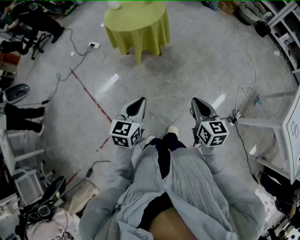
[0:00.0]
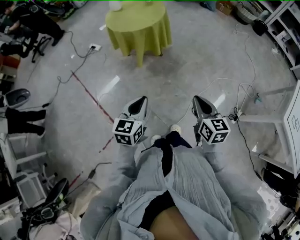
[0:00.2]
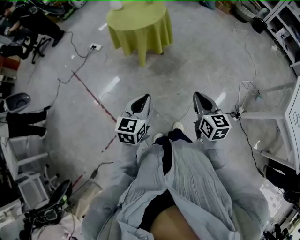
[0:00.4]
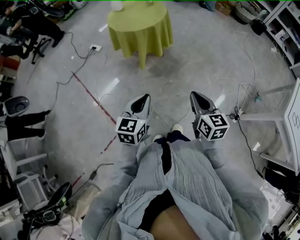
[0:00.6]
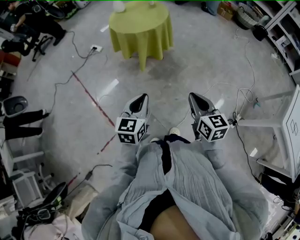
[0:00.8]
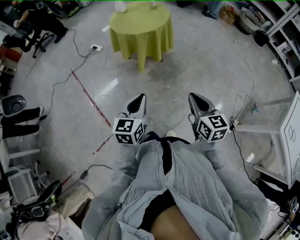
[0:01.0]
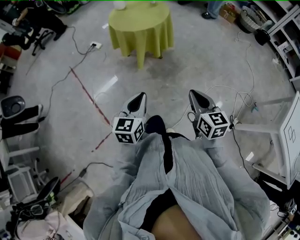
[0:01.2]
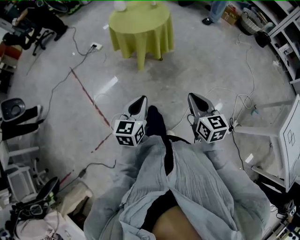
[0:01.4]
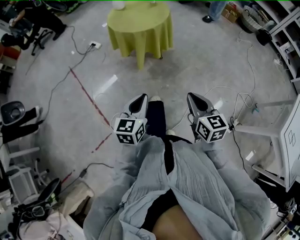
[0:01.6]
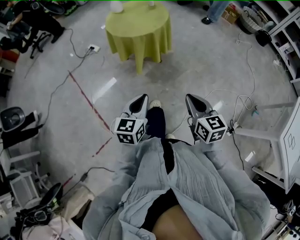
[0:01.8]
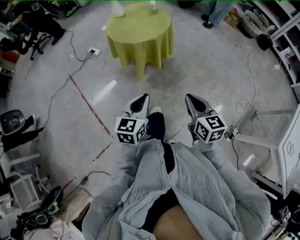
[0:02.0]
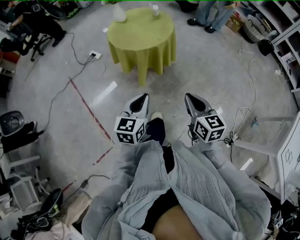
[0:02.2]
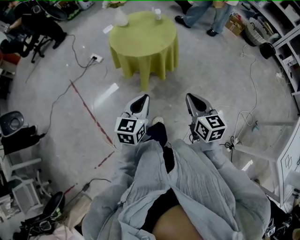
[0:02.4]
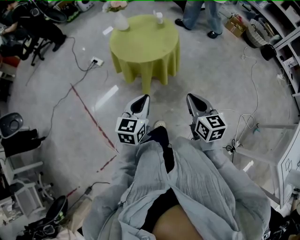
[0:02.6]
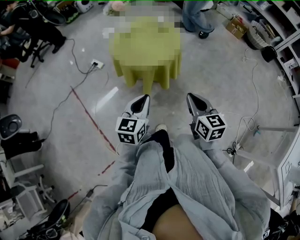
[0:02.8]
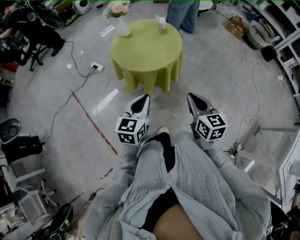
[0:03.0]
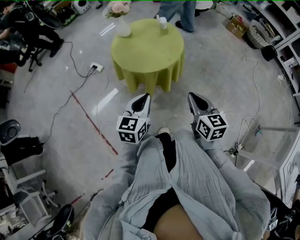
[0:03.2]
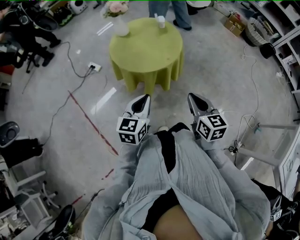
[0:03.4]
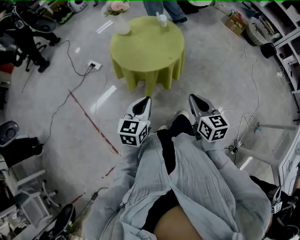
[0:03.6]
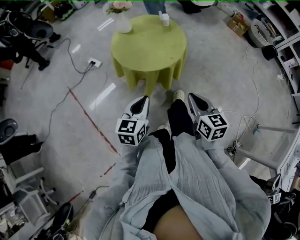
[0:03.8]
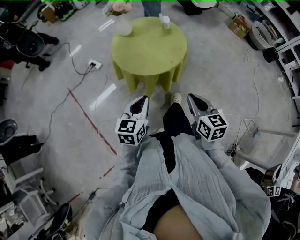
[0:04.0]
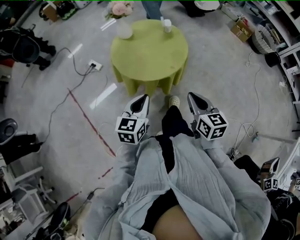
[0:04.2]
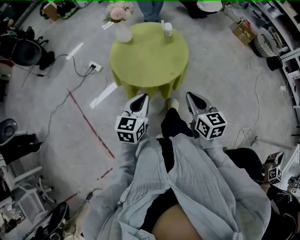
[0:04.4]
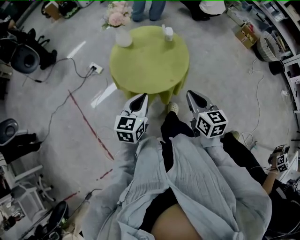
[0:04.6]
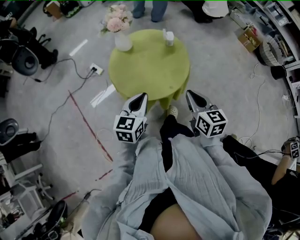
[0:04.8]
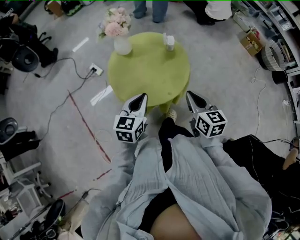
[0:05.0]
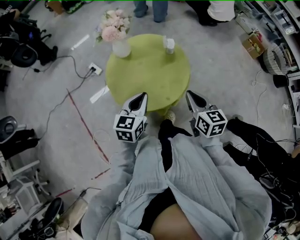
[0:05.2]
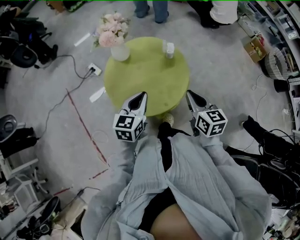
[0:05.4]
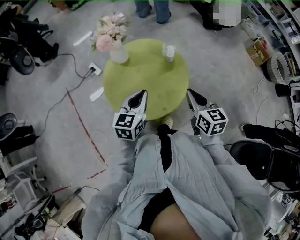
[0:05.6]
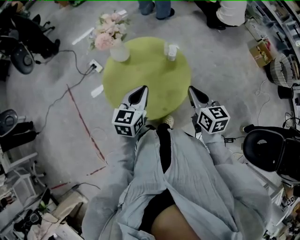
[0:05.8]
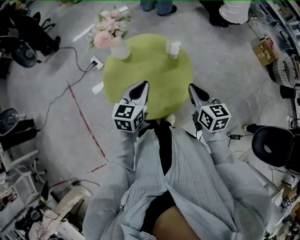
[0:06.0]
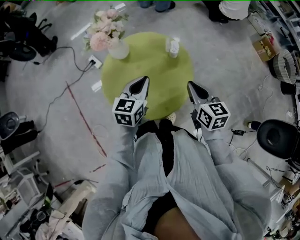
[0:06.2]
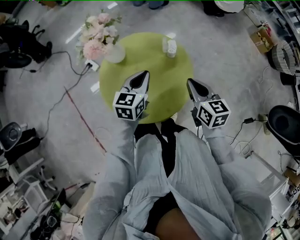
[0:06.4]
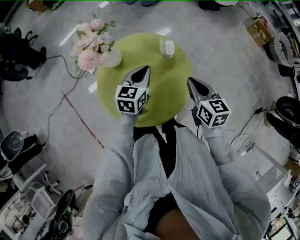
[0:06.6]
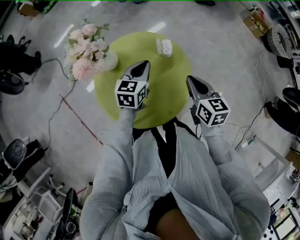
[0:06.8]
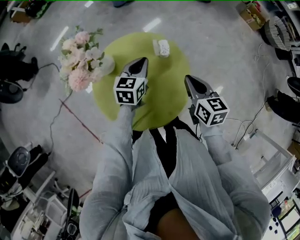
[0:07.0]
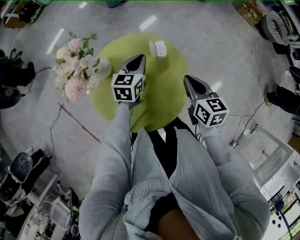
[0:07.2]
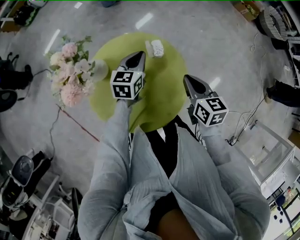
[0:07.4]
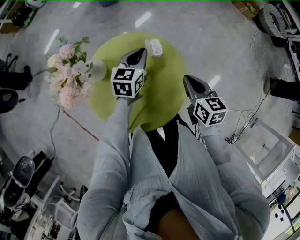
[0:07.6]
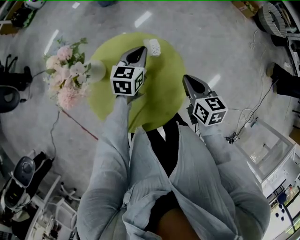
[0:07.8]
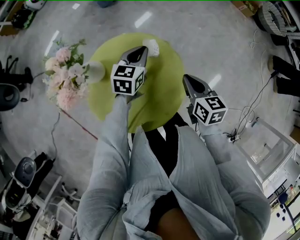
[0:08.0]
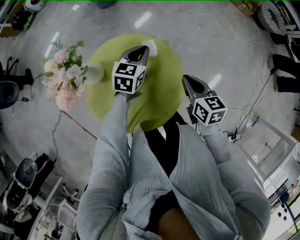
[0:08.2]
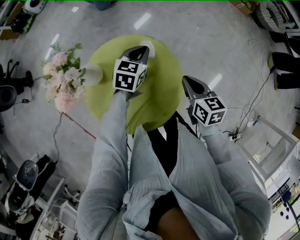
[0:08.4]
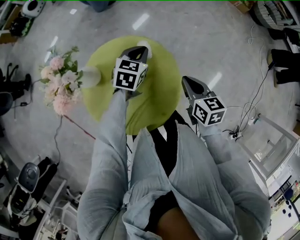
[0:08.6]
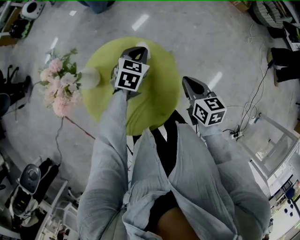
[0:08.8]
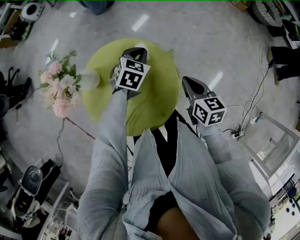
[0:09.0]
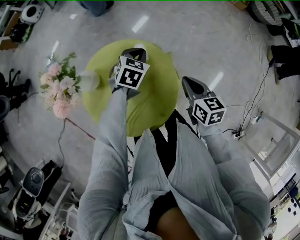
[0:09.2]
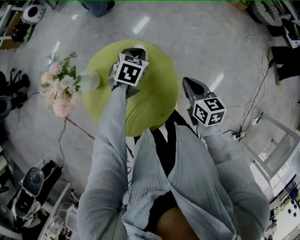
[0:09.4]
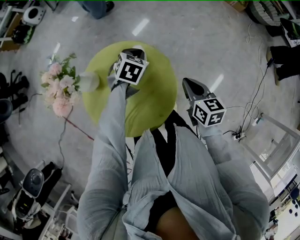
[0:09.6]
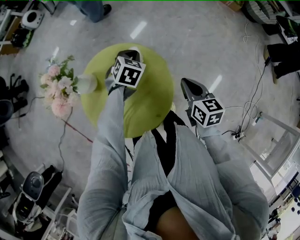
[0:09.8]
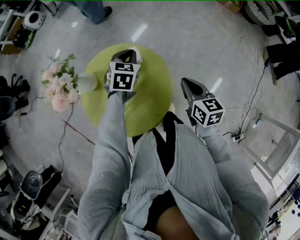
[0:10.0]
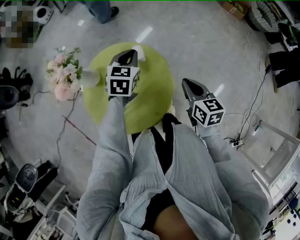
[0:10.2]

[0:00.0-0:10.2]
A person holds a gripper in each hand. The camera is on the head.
0:00.0 to 0:01.4: The grippers move only a little.
0:01.4 to 0:03.0: The grippers both shift forward by about 30 cm.
0:03.0 to 0:04.4: Both grippers move forward, some 10 cm.
0:04.4 to 0:05.8: The grippers both shift forward by about 20 cm.
0:05.8 to 0:07.2: The right gripper goes about 5 cm forward. Meanwhile the left gripper heads forward, covering some 20 cm.
0:07.2 to 0:08.8: The left gripper is displaced to the right by approximately 10 cm, and changes its angle by roughly 30 degrees. The right gripper is displaced to the right by approximately 5 cm.
0:08.8 to 0:10.2: The left gripper travels upward by roughly 5 cm, while the right gripper ends up about 5 cm from where it was.

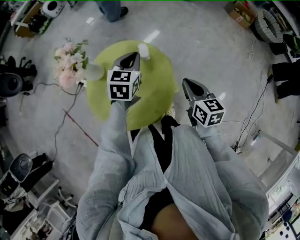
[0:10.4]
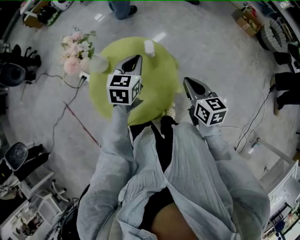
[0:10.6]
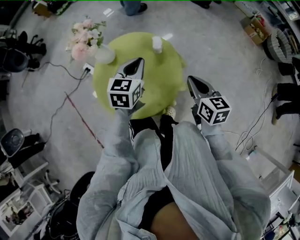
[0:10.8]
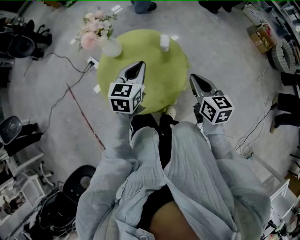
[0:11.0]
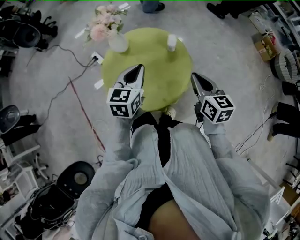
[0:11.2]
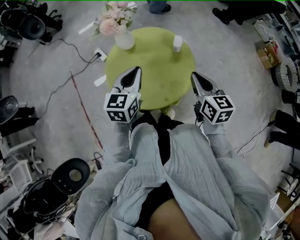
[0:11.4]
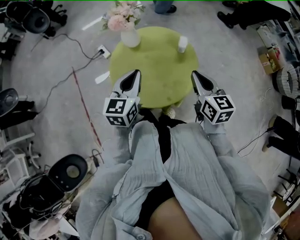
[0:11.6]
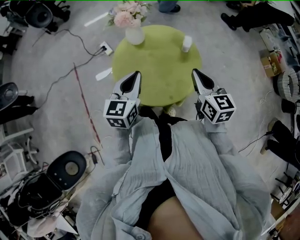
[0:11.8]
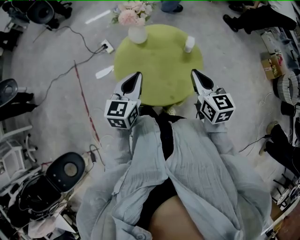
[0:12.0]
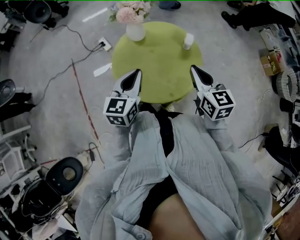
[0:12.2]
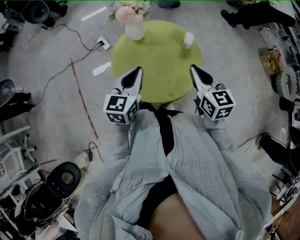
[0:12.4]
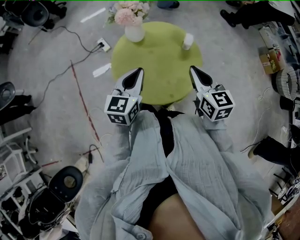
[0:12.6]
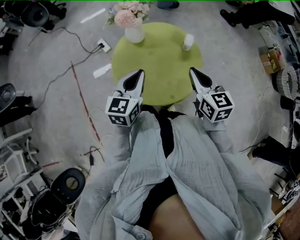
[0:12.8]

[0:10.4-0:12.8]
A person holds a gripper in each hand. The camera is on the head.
0:10.4 to 0:11.6: The left gripper moves backward and to the left, some 25 cm, and turns by some 30 degrees; the right gripper travels to the left and upward by about 10 cm, and rotates roughly 20 degrees.
0:11.6 to 0:12.8: The right gripper changes place by some 5 cm.

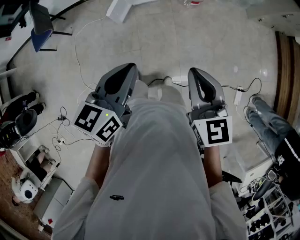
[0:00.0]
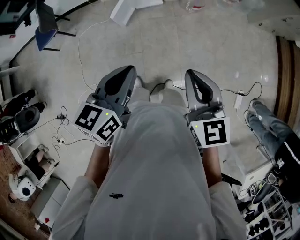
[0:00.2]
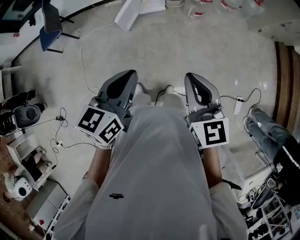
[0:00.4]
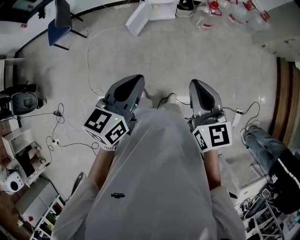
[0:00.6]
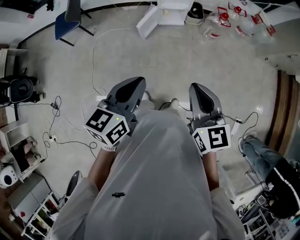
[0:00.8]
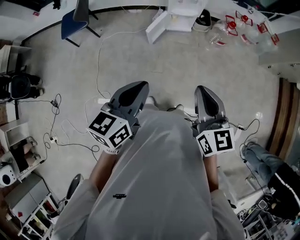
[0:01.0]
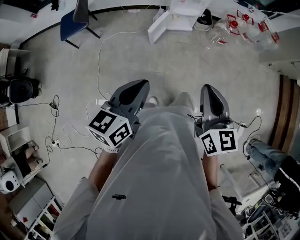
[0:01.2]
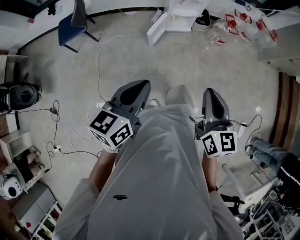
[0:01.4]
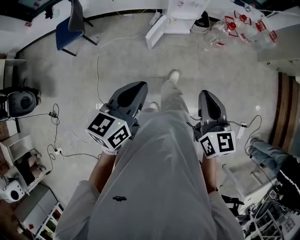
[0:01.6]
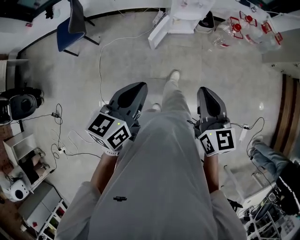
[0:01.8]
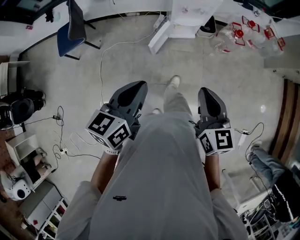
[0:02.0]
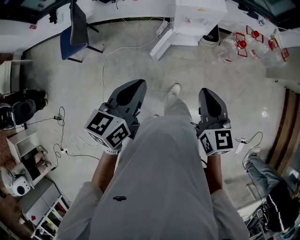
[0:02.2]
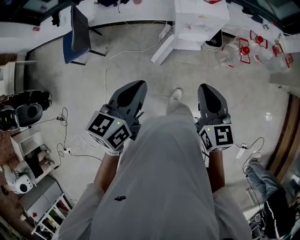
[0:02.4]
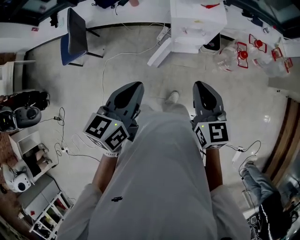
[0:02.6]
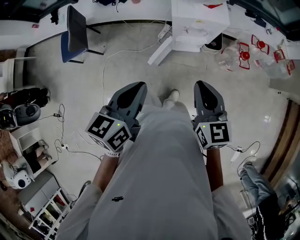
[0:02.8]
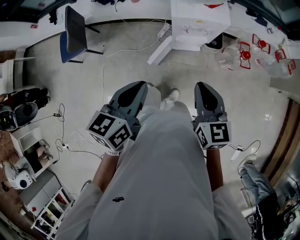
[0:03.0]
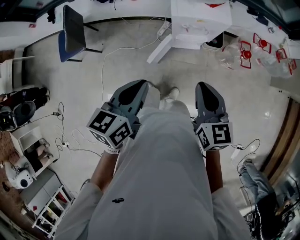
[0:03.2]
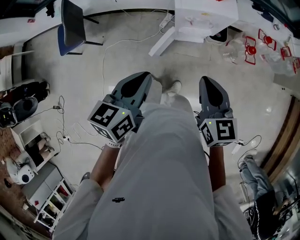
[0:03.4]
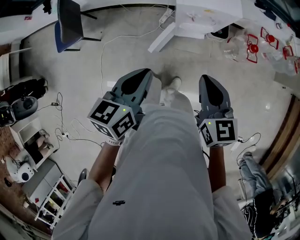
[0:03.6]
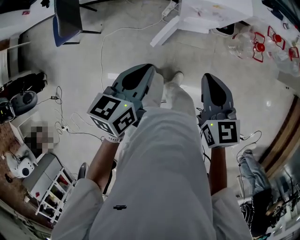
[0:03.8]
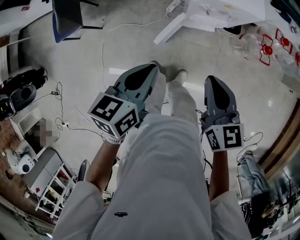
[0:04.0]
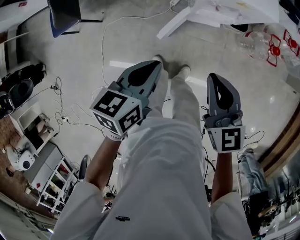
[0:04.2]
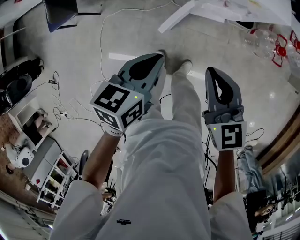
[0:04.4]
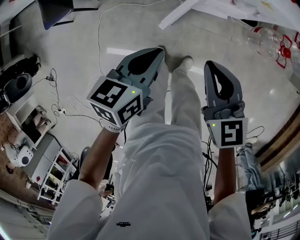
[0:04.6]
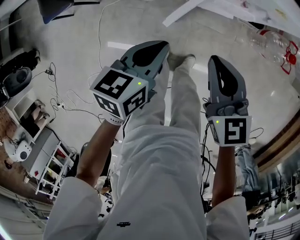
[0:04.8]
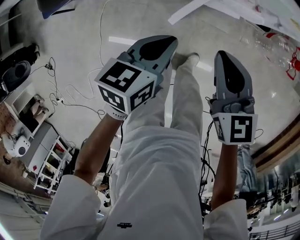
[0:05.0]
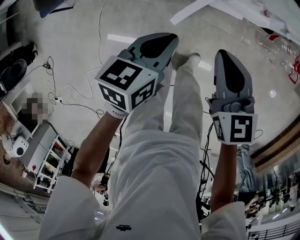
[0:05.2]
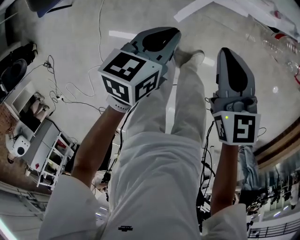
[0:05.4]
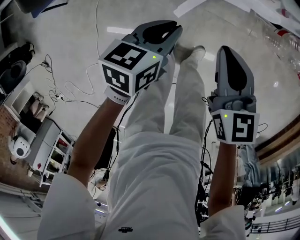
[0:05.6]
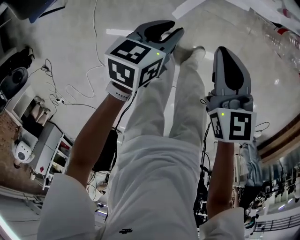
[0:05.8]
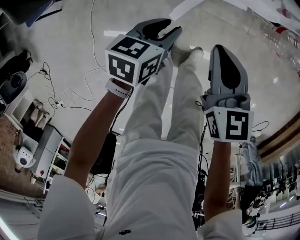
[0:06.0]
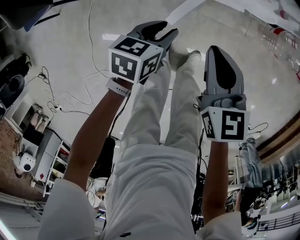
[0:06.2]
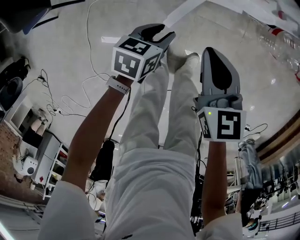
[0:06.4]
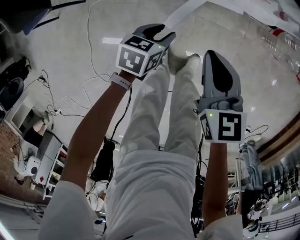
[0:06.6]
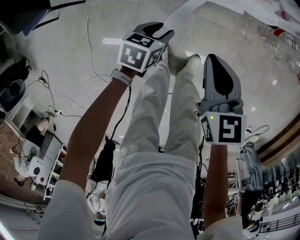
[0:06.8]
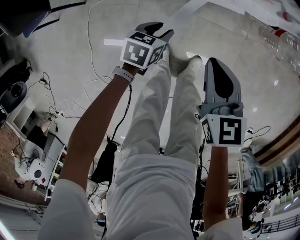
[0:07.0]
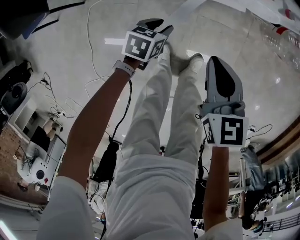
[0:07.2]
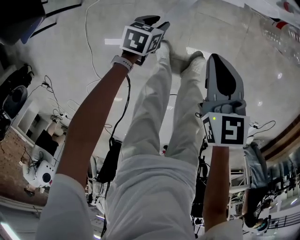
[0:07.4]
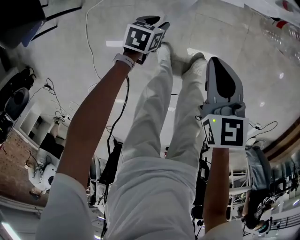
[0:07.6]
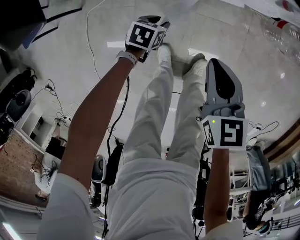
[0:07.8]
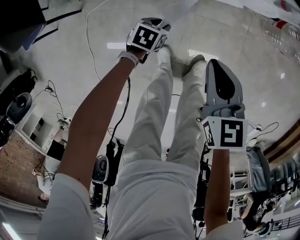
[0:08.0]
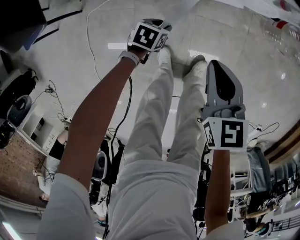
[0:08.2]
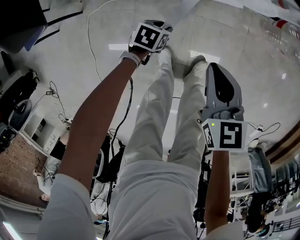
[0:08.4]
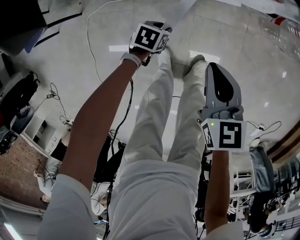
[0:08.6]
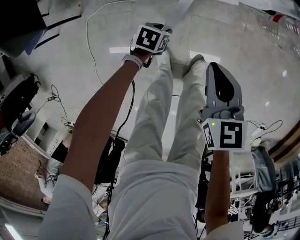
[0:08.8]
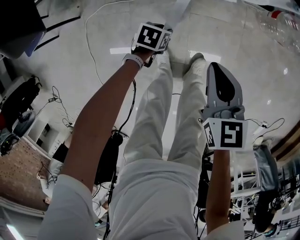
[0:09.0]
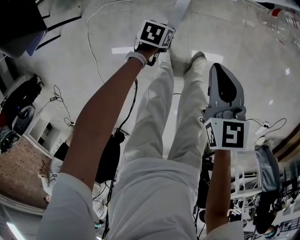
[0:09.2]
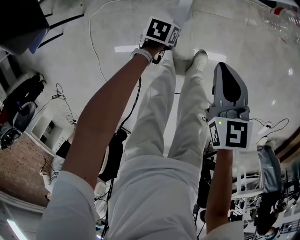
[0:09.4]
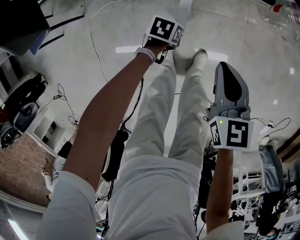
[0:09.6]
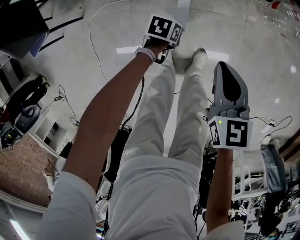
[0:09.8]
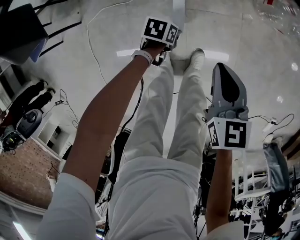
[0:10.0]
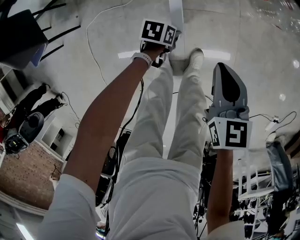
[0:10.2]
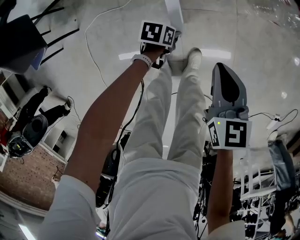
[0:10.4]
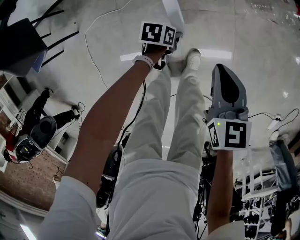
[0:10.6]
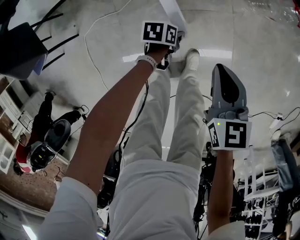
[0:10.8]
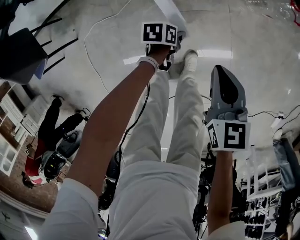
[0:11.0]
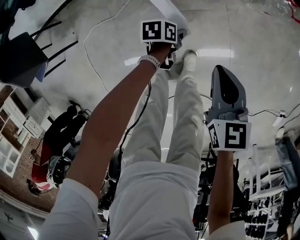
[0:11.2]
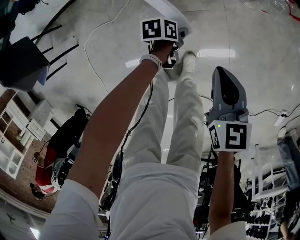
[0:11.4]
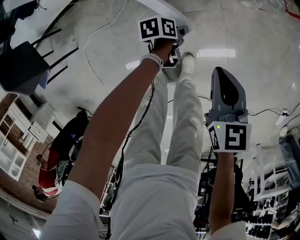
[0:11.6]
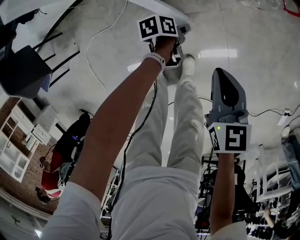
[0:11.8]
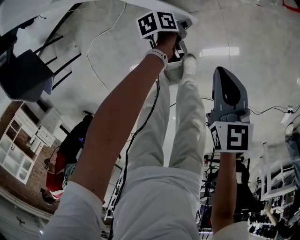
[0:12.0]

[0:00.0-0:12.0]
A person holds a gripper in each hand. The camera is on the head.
0:00.0 to 0:01.6: The two grippers go some 20 cm to the left.
0:01.6 to 0:03.0: The grippers both shift forward by approximately 35 cm.
0:03.0 to 0:04.4: The right gripper travels downward and to the left by roughly 15 cm. The left gripper heads downward, covering roughly 20 cm.
0:04.4 to 0:06.0: Both grippers move downward, some 20 cm. The left gripper opens up.
0:06.0 to 0:07.6: The right gripper goes about 5 cm downward. The left gripper travels downward by roughly 20 cm.
0:07.6 to 0:09.0: The left gripper changes place by some 5 cm.
0:09.0 to 0:10.4: The grippers both shift to the right by approximately 10 cm.
0:10.4 to 0:12.0: The right gripper moves to the right and forward, roughly 10 cm. The left gripper travels forward and to the right by about 20 cm, and changes its angle by about 20 degrees.
